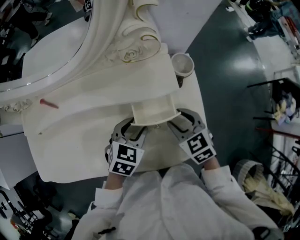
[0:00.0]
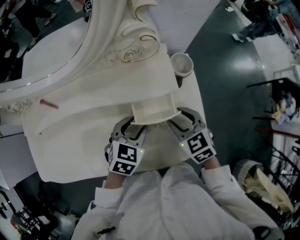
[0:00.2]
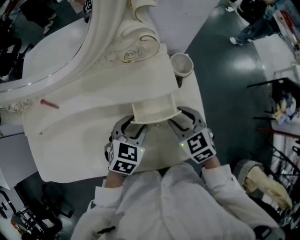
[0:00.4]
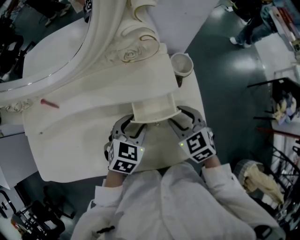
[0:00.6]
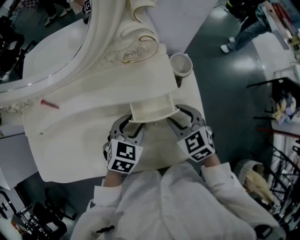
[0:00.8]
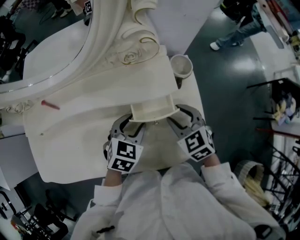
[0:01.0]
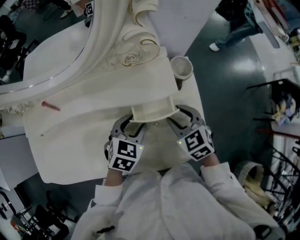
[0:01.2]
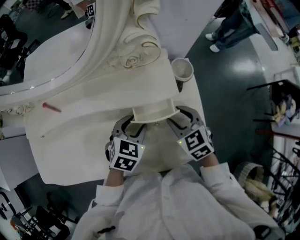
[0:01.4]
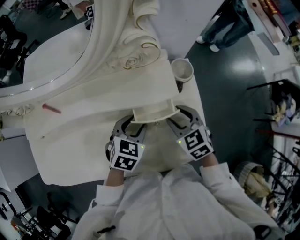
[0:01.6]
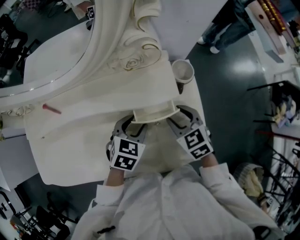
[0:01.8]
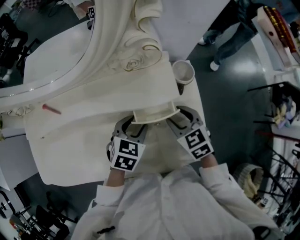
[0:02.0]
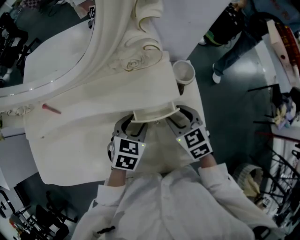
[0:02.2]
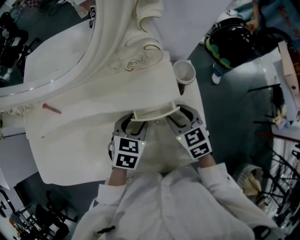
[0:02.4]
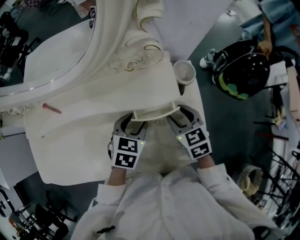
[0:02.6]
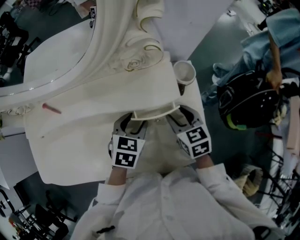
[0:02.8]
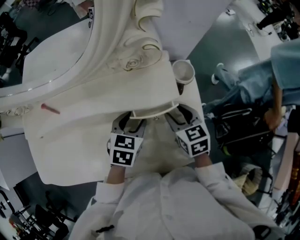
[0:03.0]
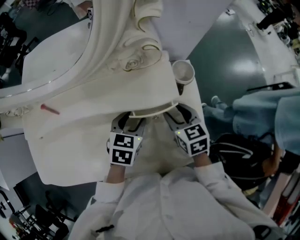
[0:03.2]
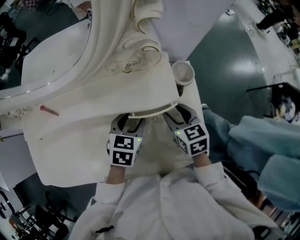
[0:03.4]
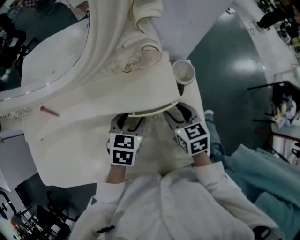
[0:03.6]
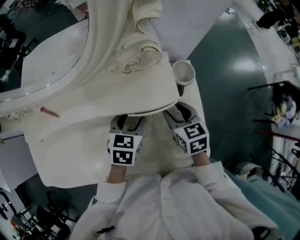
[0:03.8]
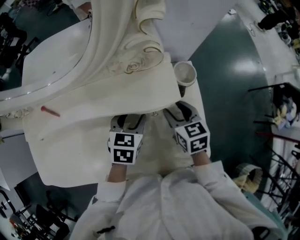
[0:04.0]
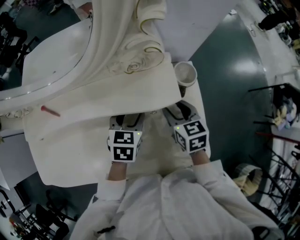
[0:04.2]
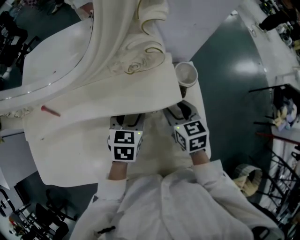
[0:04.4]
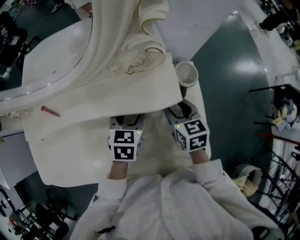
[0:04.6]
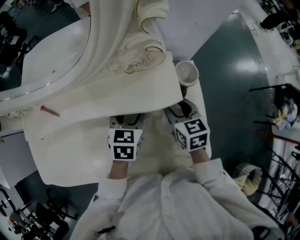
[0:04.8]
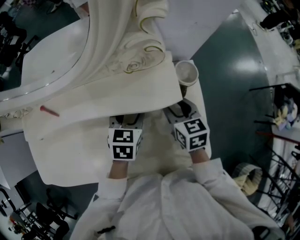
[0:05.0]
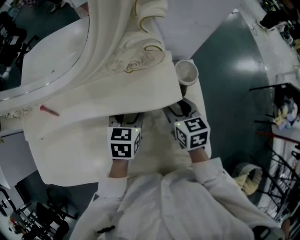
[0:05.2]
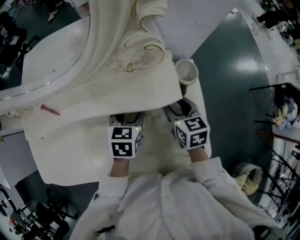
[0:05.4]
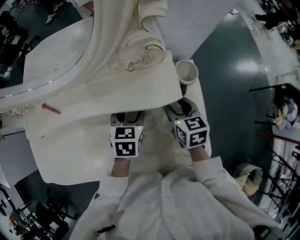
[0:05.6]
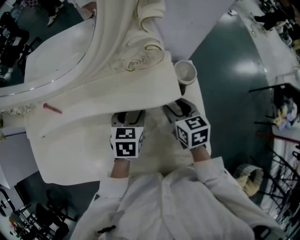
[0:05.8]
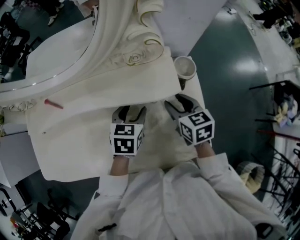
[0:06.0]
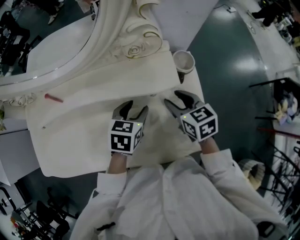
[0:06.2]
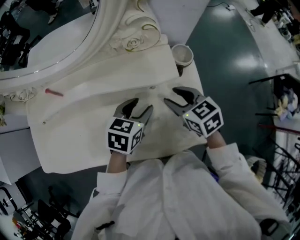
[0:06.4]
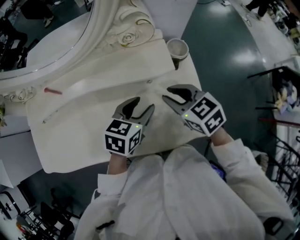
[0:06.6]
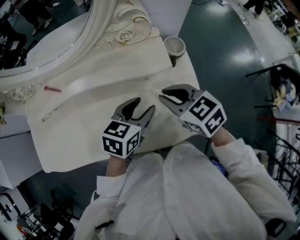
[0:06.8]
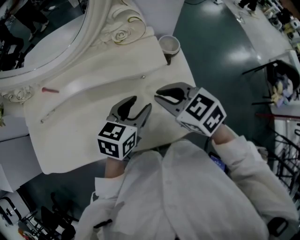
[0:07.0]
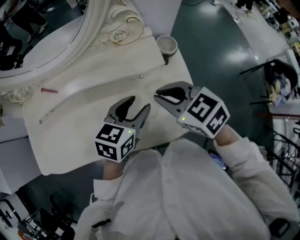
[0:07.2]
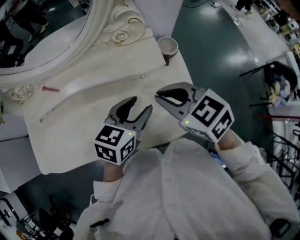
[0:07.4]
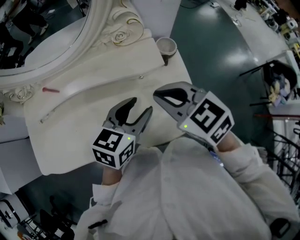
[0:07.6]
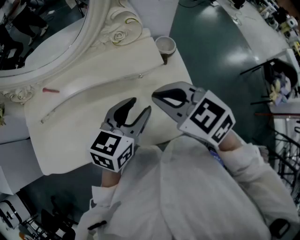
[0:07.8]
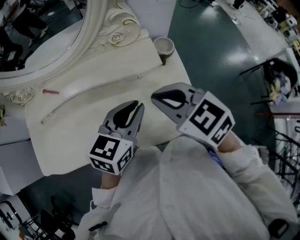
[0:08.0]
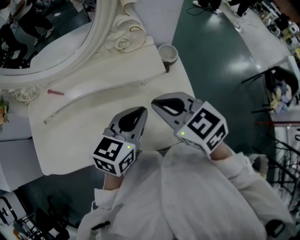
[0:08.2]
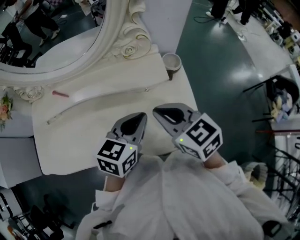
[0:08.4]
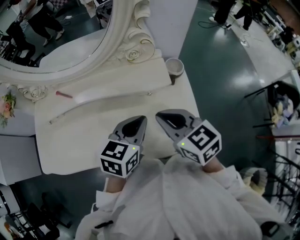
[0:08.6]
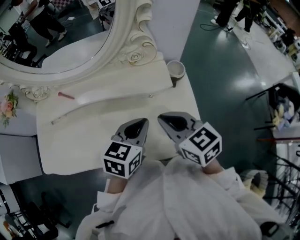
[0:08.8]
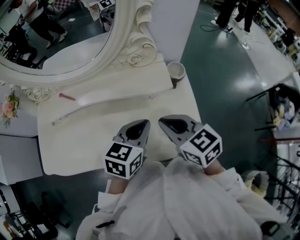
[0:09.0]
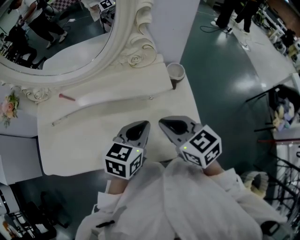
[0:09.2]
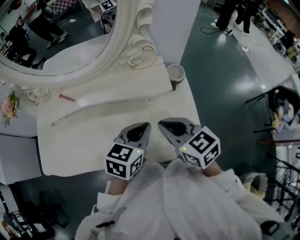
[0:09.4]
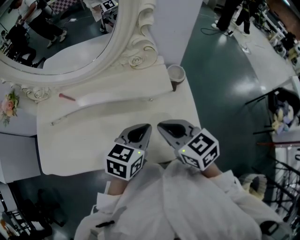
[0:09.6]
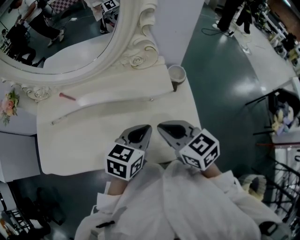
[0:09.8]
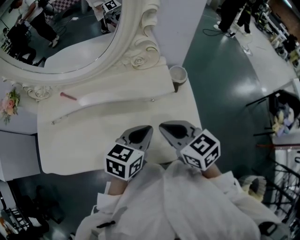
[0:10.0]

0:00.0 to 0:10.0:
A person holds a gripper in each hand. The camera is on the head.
0:00.0 to 0:02.8: The grippers move only a little.
0:02.8 to 0:05.8: There are only small adjustments of the grippers.
0:05.8 to 0:07.2: The left gripper moves backward and upward, some 15 cm, and turns by about 30 degrees; the right gripper is displaced upward and backward by roughly 20 cm, turns by roughly 30 degrees, and closes up.
0:07.2 to 0:08.6: The left gripper closes its fingers.
0:08.6 to 0:10.0: The grippers move only a little.

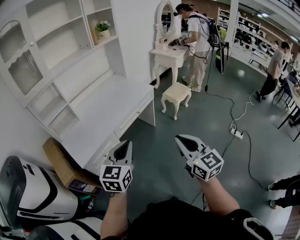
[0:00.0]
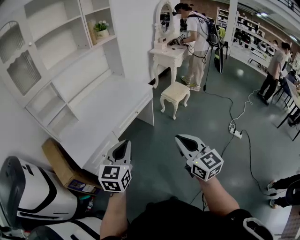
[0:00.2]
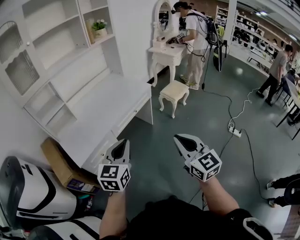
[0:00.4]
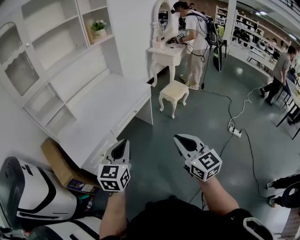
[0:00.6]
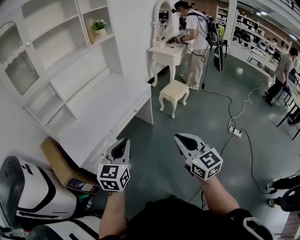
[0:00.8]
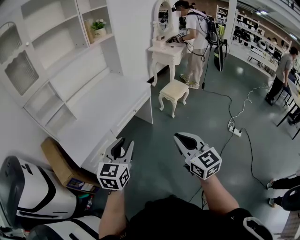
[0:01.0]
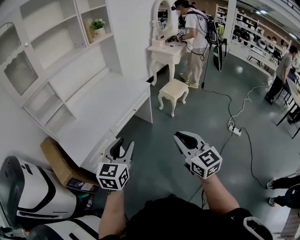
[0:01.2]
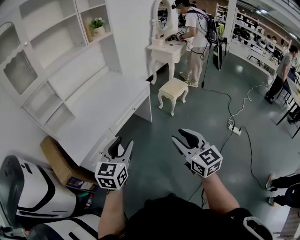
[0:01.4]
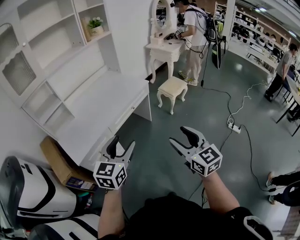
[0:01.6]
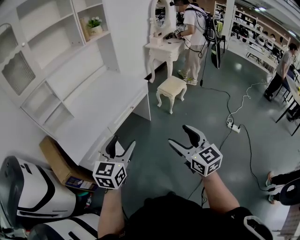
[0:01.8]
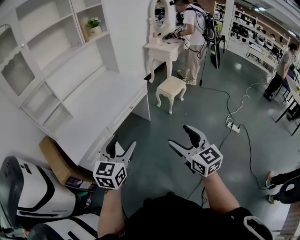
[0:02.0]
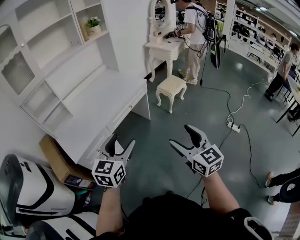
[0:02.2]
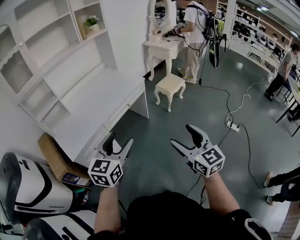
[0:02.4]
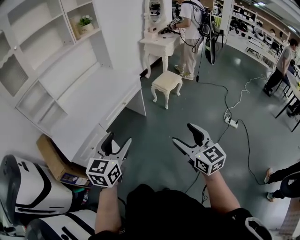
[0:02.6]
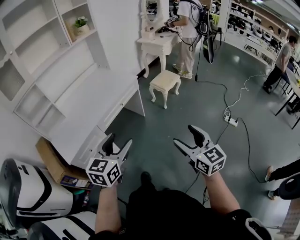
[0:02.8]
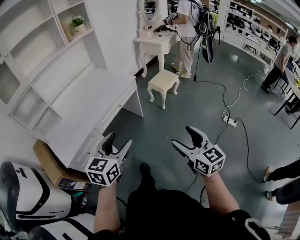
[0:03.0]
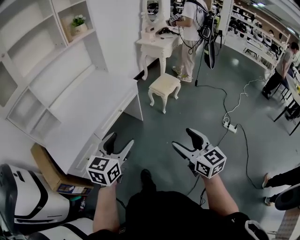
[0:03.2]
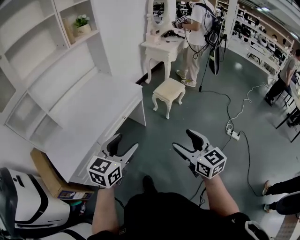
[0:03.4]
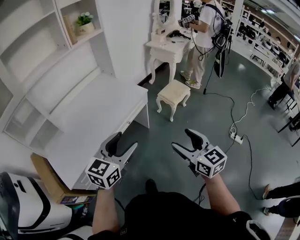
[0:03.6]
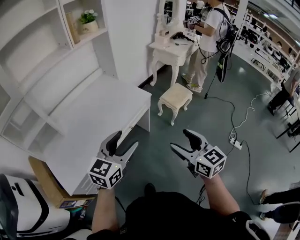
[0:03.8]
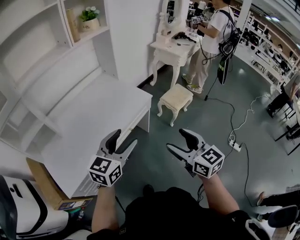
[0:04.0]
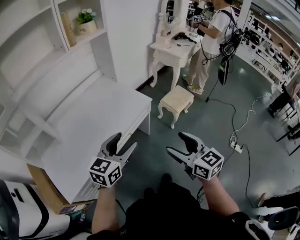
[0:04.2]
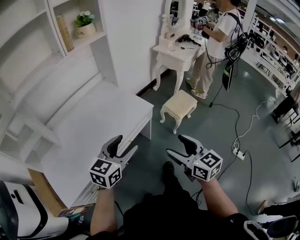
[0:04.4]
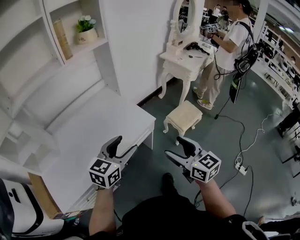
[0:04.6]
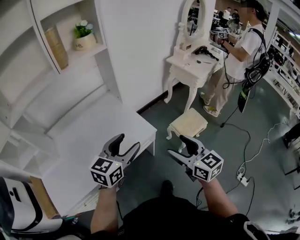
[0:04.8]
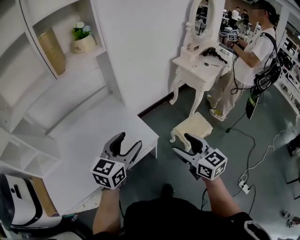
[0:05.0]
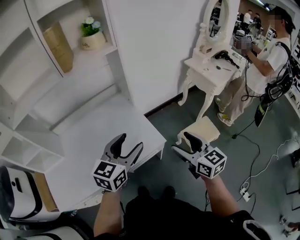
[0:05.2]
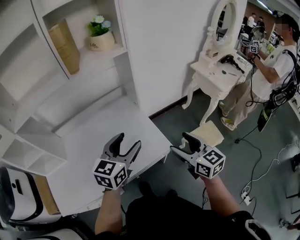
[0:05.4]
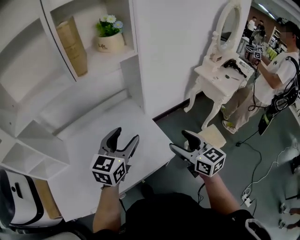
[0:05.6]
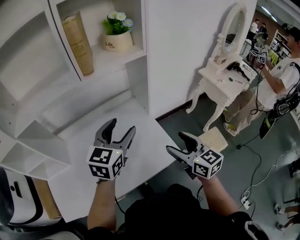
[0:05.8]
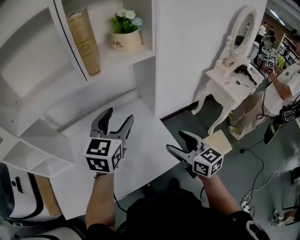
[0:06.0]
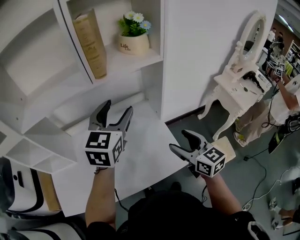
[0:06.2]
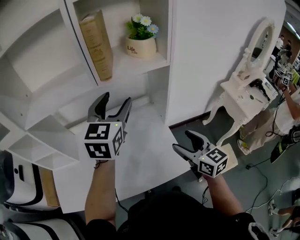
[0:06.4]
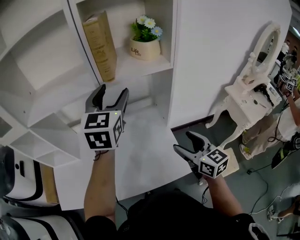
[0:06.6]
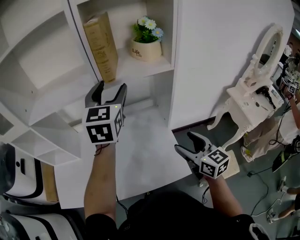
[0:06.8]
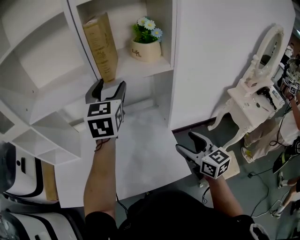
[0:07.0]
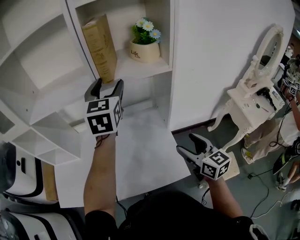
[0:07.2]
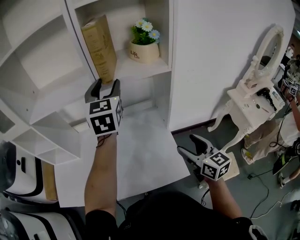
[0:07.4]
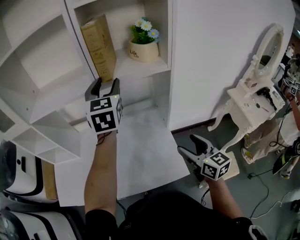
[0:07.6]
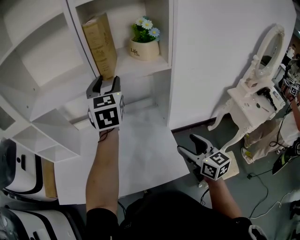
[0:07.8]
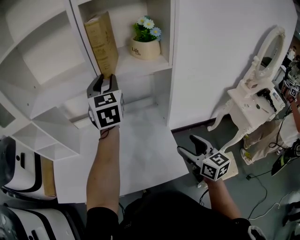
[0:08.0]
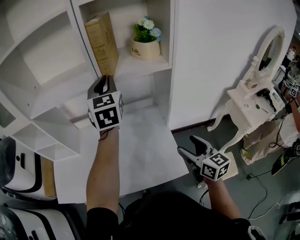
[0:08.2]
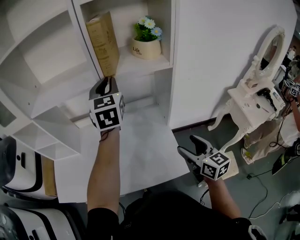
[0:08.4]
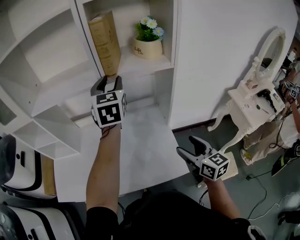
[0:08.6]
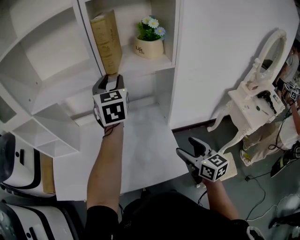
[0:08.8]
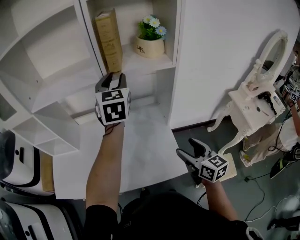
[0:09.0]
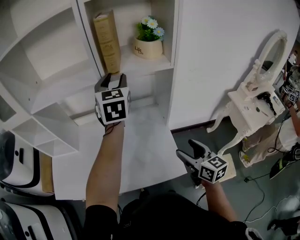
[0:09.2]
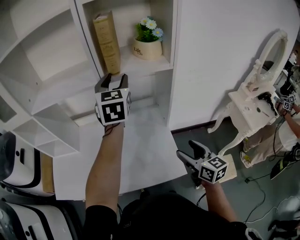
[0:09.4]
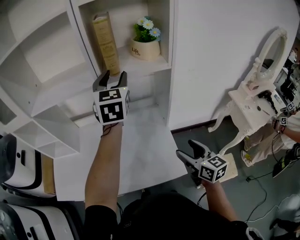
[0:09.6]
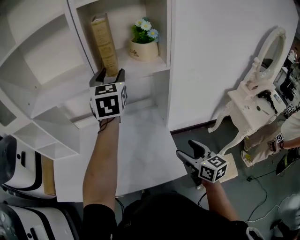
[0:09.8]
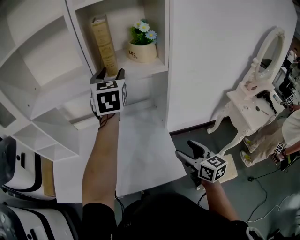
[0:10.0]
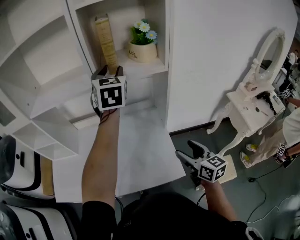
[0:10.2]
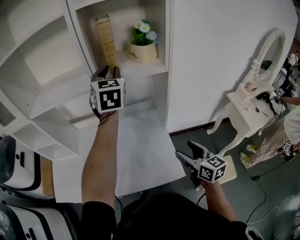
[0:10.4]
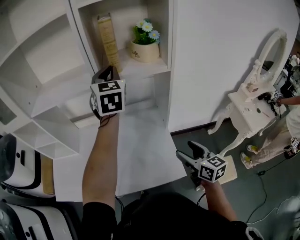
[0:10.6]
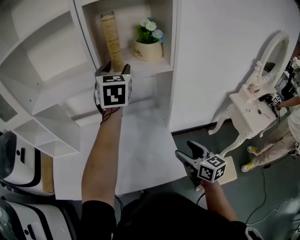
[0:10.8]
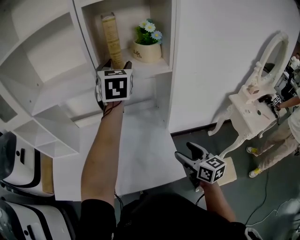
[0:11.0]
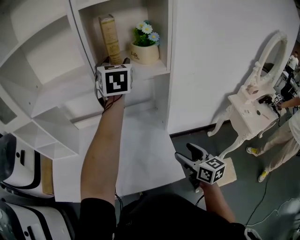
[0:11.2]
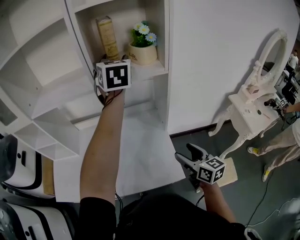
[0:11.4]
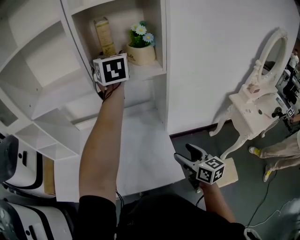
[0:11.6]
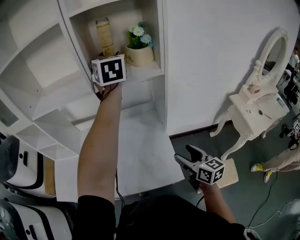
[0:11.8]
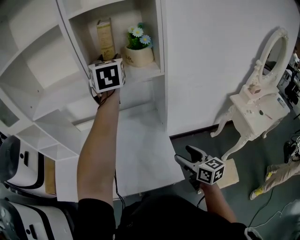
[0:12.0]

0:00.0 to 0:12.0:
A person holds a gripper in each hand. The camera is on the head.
0:00.0 to 0:01.6: The left gripper opens. The right gripper opens its fingers.
0:01.6 to 0:03.0: The two grippers go approximately 10 cm to the right.
0:03.0 to 0:04.4: The grippers both shift forward by some 40 cm.
0:04.4 to 0:06.0: Both grippers are carried roughly 40 cm. The right gripper changes its angle by about 20 degrees; the left gripper changes its angle by about 40 degrees.
0:06.0 to 0:07.6: The left gripper moves forward and upward, approximately 15 cm, and rotates about 30 degrees. The right gripper travels to the right by some 5 cm.
0:07.6 to 0:09.0: There are only small adjustments of the grippers.
0:09.0 to 0:10.4: The left gripper shifts by roughly 5 cm.
0:10.4 to 0:12.0: The left gripper goes about 5 cm upward, and opens its fingers.

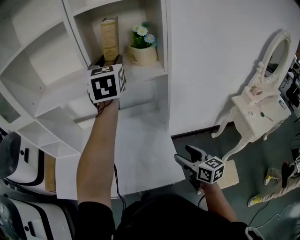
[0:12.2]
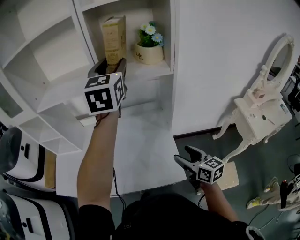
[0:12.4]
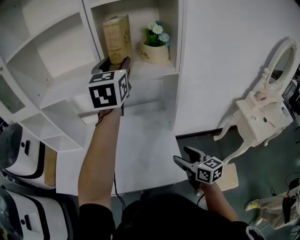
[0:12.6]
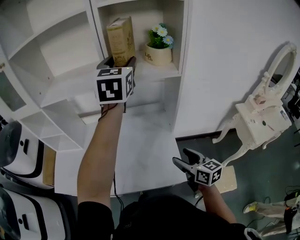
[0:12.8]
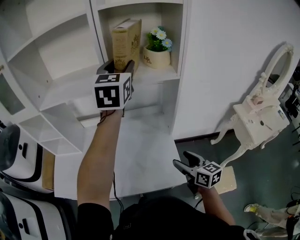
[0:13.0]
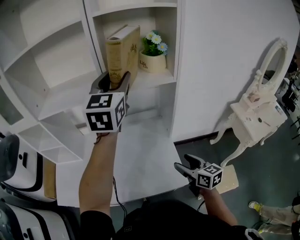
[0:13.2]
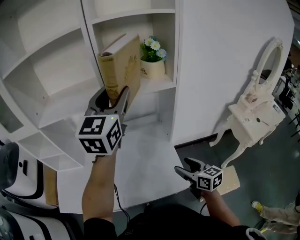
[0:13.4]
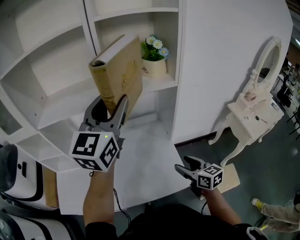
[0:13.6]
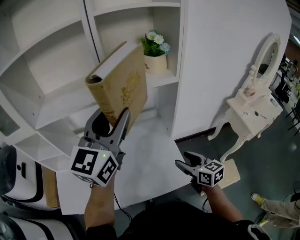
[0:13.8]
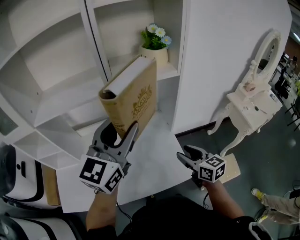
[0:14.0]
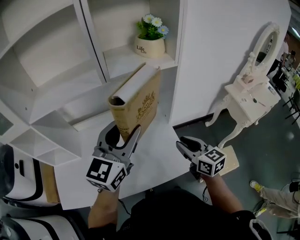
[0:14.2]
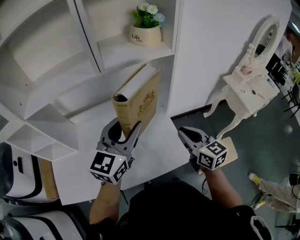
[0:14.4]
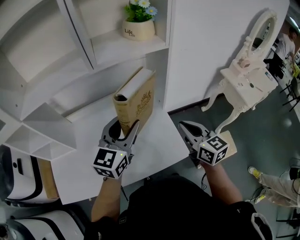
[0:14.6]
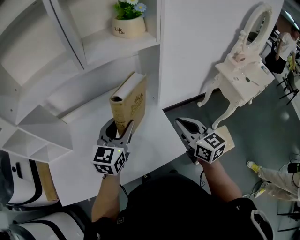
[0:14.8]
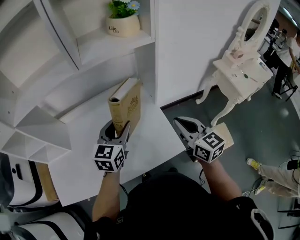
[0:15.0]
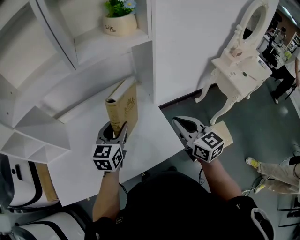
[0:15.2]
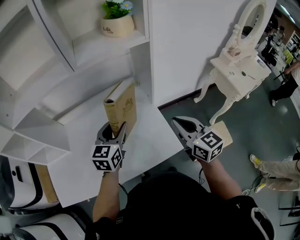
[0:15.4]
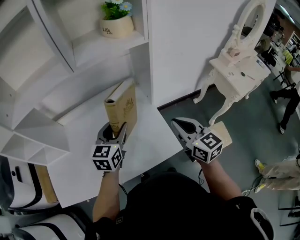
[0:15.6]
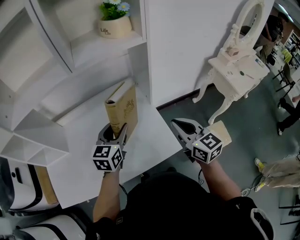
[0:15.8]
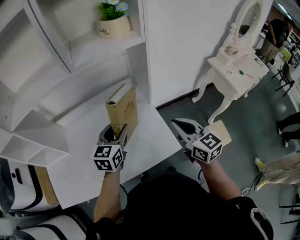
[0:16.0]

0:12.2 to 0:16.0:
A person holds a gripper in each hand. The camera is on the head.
0:12.2 to 0:13.4: The right gripper is displaced to the left by approximately 5 cm; the left gripper shifts roughly 10 cm backward, and turns by some 20 degrees.
0:13.4 to 0:14.8: The left gripper shifts approximately 25 cm downward, and turns by about 20 degrees. Meanwhile the right gripper is displaced upward by about 5 cm, and closes up.
0:14.8 to 0:16.0: The left gripper goes some 5 cm downward.
